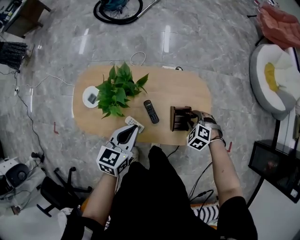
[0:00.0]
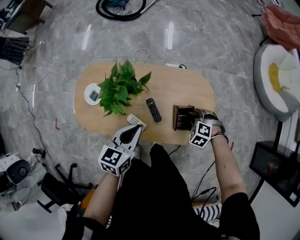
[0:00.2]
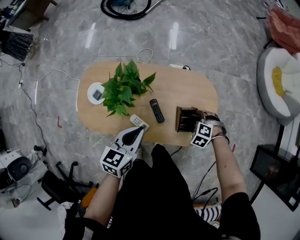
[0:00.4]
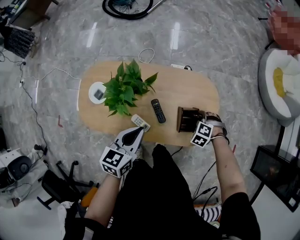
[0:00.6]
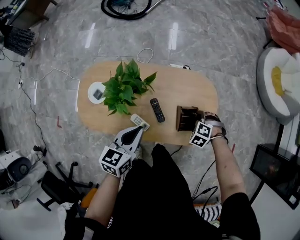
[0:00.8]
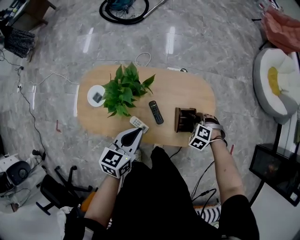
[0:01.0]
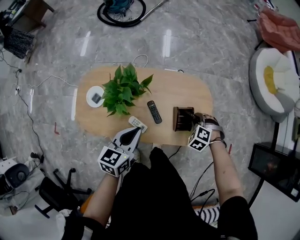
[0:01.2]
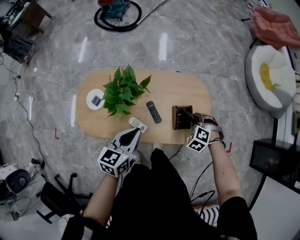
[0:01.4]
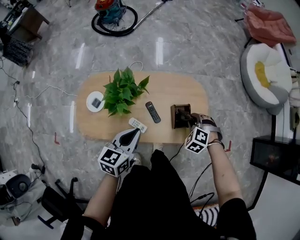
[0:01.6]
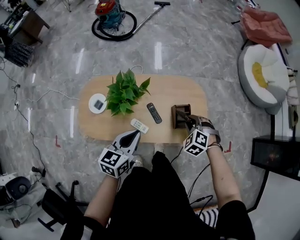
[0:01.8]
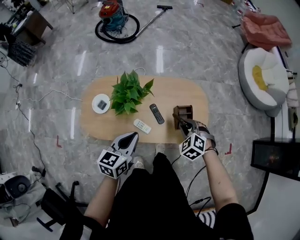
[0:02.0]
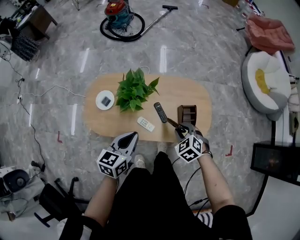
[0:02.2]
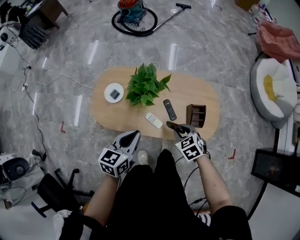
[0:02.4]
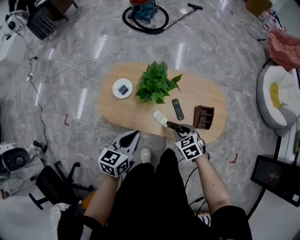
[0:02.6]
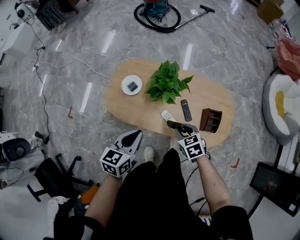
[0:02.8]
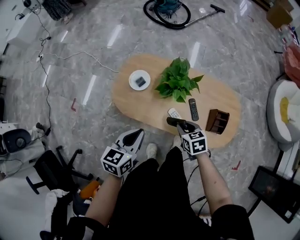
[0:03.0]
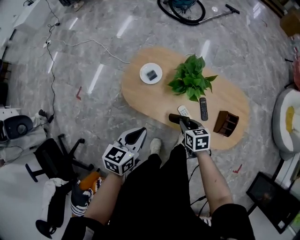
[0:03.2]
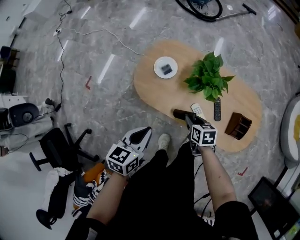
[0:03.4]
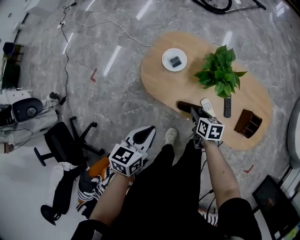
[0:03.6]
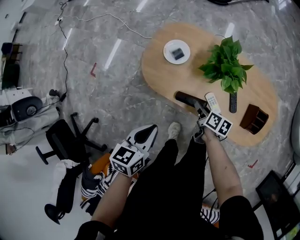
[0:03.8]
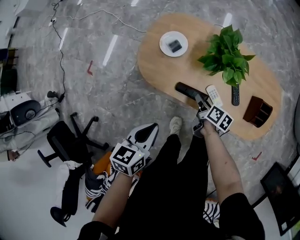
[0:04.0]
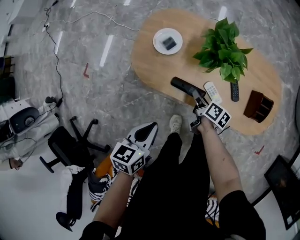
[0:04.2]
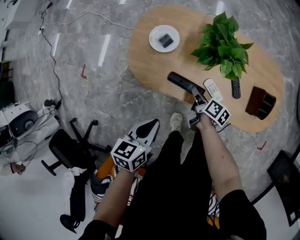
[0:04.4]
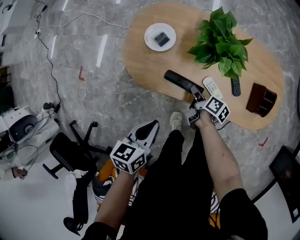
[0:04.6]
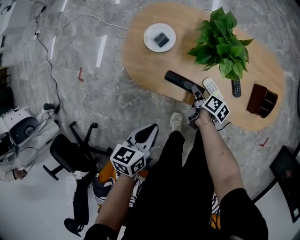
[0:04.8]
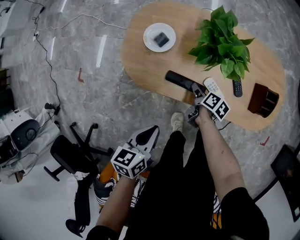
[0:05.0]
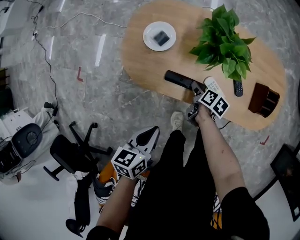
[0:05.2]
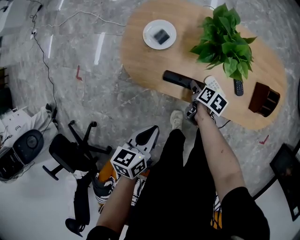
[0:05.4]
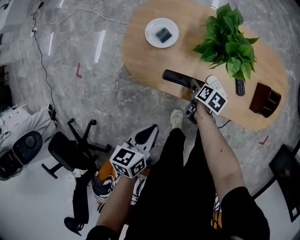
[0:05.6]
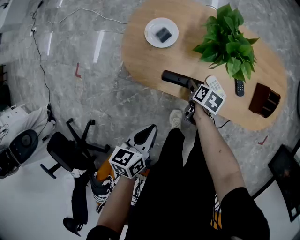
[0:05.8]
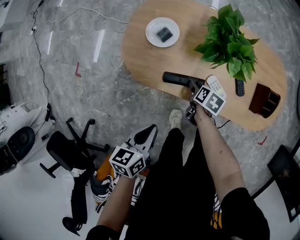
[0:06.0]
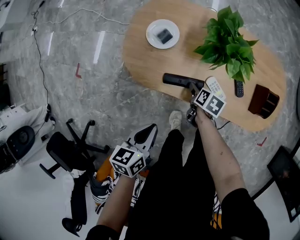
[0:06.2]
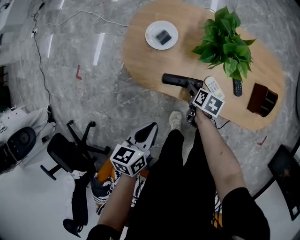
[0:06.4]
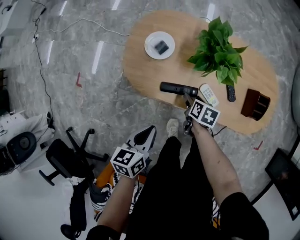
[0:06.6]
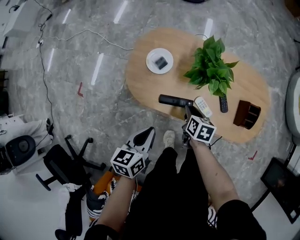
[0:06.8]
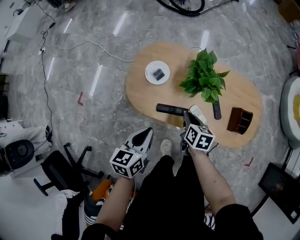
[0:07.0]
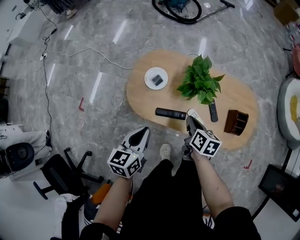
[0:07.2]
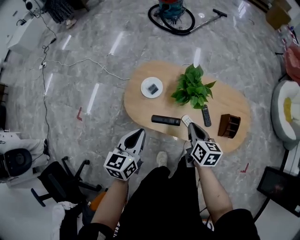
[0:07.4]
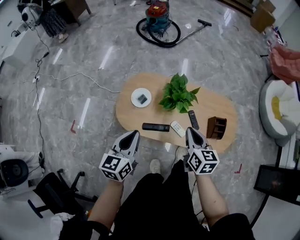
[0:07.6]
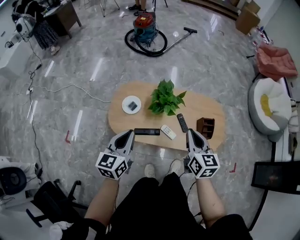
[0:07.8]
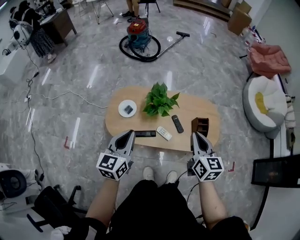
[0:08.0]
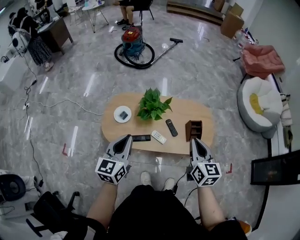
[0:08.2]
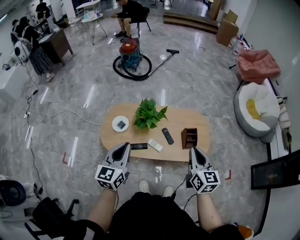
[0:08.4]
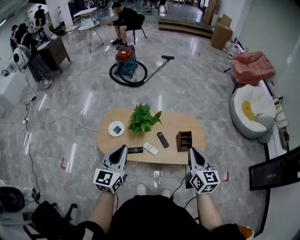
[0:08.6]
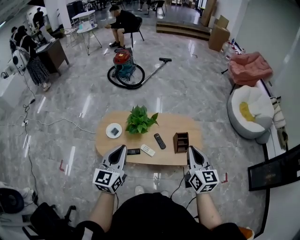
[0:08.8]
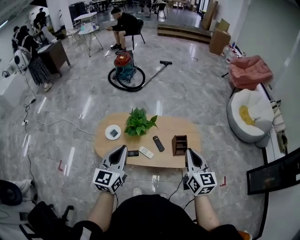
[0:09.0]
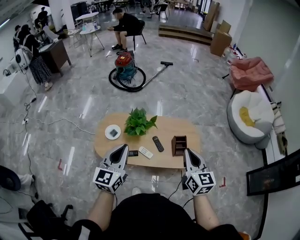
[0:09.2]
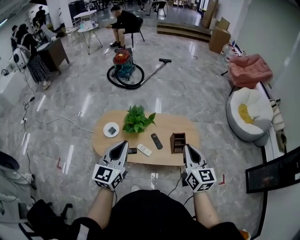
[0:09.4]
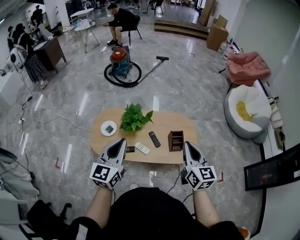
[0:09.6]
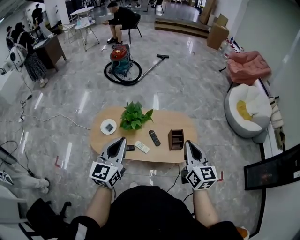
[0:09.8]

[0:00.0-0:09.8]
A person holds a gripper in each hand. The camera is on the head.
0:00.0 to 0:01.4: There are only small adjustments of the grippers.
0:01.4 to 0:02.8: The right gripper ends up about 30 cm from where it was, and rotates roughly 50 degrees. Meanwhile the left gripper moves approximately 20 cm.
0:02.8 to 0:04.2: The grippers both shift downward and to the left by some 20 cm. The right gripper twists some 70 degrees clockwise, seen from behind.
0:04.2 to 0:05.6: Both grippers travel together downward, some 5 cm. The right gripper rotates roughly 30 degrees, and opens up.
0:05.6 to 0:07.0: The right gripper goes about 20 cm upward, rotates approximately 30 degrees, and closes its fingers. The left gripper goes about 15 cm upward and forward.
0:07.0 to 0:08.4: The left gripper travels upward and to the right by about 25 cm, and rotates approximately 30 degrees; the right gripper travels upward, to the right and backward by approximately 40 cm, and tips its fingers upward by approximately 30 degrees.
0:08.4 to 0:09.8: The grippers both shift to the right and upward by about 10 cm.

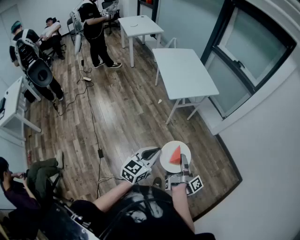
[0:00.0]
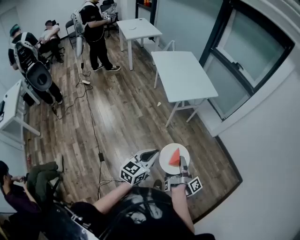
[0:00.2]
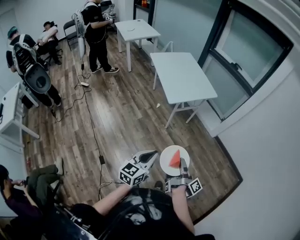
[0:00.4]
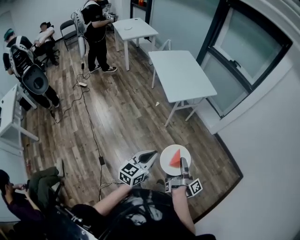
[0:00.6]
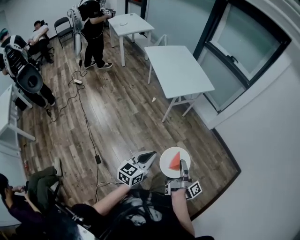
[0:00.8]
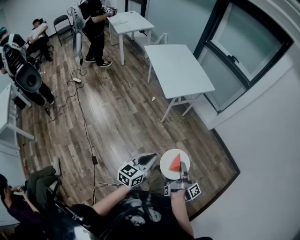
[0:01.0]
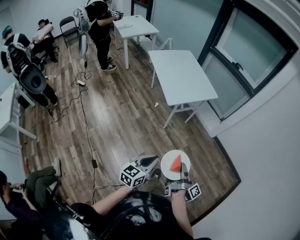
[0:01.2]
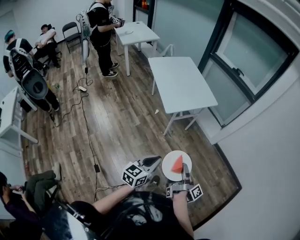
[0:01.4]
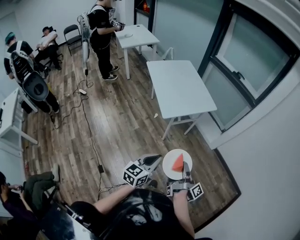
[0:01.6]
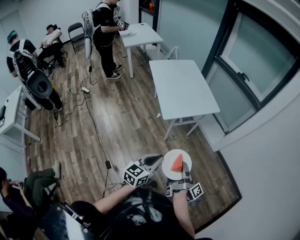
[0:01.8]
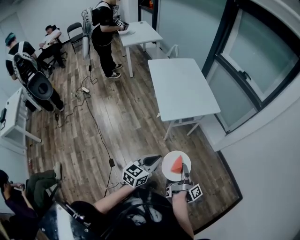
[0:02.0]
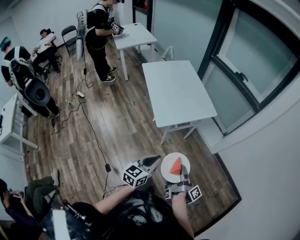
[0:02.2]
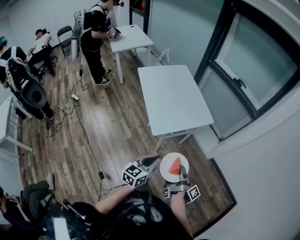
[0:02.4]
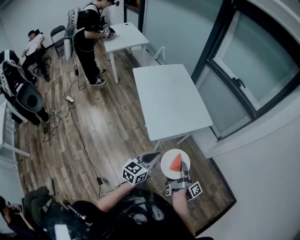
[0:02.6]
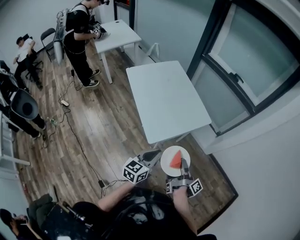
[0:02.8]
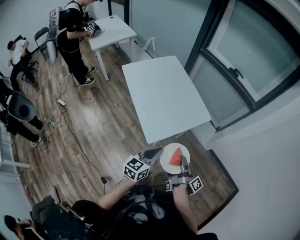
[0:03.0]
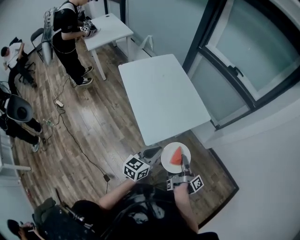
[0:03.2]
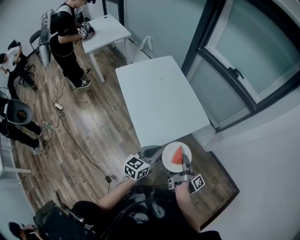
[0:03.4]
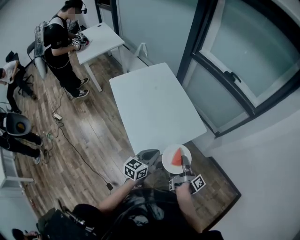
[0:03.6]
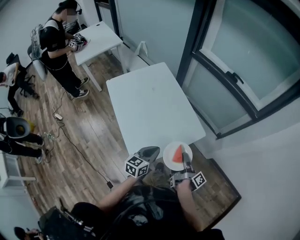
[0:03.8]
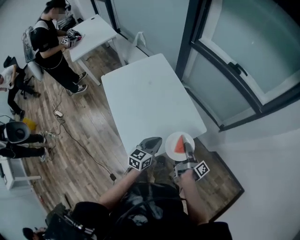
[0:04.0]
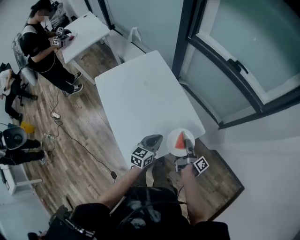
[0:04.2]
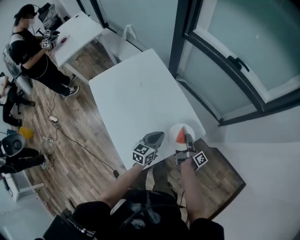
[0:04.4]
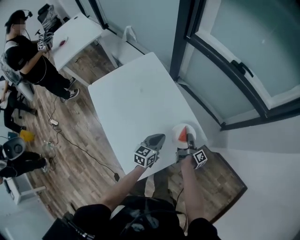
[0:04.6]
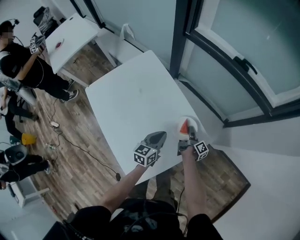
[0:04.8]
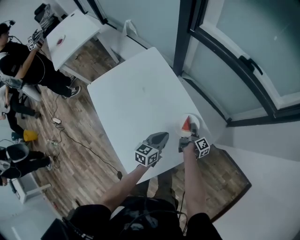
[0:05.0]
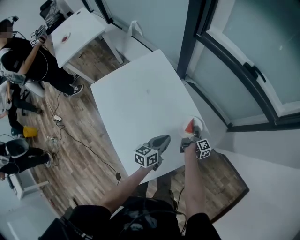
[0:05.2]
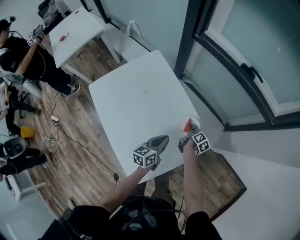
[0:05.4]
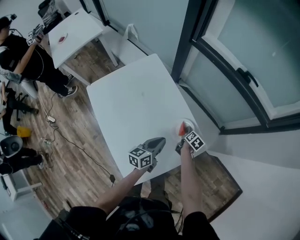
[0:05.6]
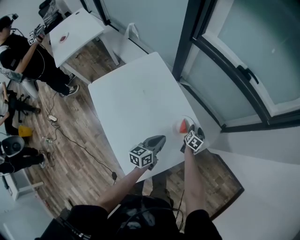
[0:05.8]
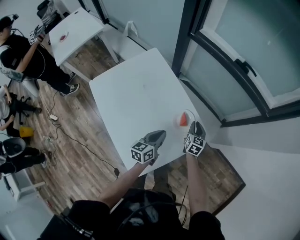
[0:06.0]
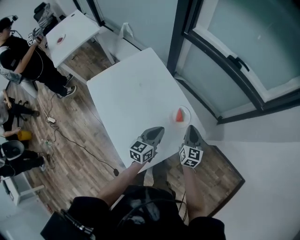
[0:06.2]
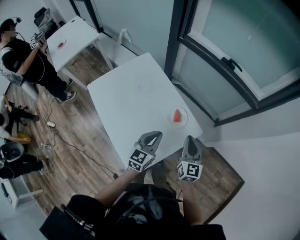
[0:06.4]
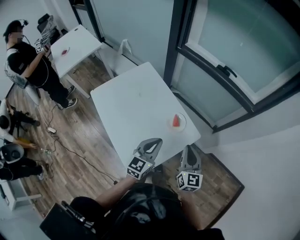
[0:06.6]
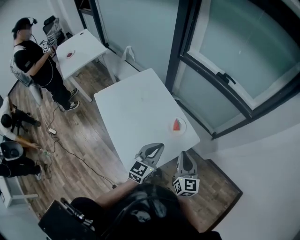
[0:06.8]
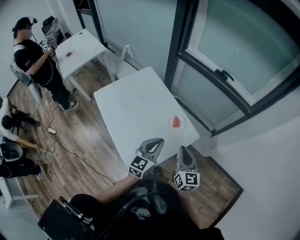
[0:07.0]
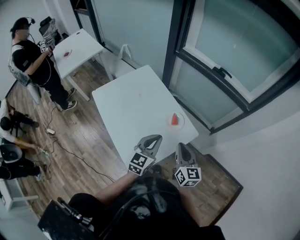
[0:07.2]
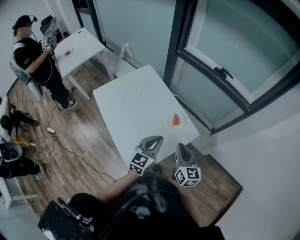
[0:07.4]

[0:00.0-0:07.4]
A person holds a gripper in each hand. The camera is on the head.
0:00.0 to 0:01.4: The left gripper moves about 10 cm.
0:01.4 to 0:03.0: The left gripper moves about 40 cm.
0:03.0 to 0:04.4: The left gripper moves approximately 40 cm.
0:06.0 to 0:07.4: The left gripper heads upward, covering approximately 15 cm, and swivels approximately 30 degrees.

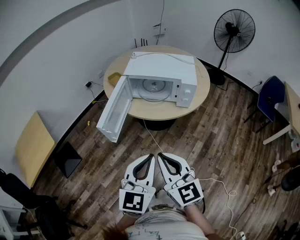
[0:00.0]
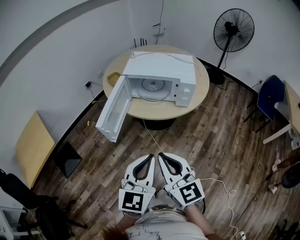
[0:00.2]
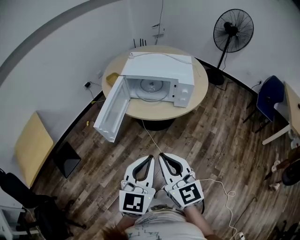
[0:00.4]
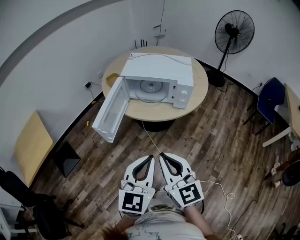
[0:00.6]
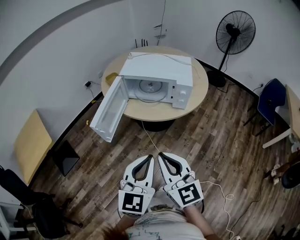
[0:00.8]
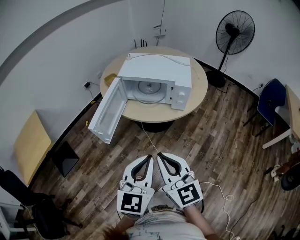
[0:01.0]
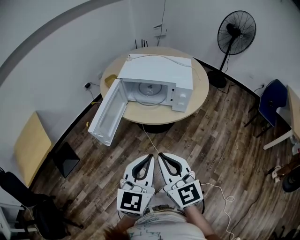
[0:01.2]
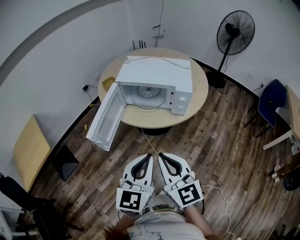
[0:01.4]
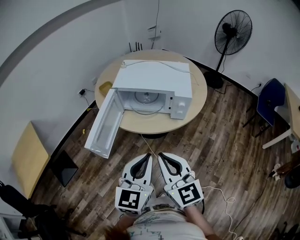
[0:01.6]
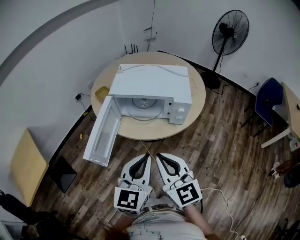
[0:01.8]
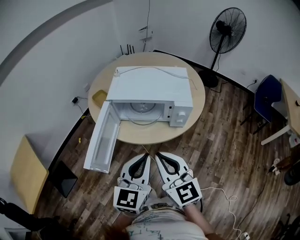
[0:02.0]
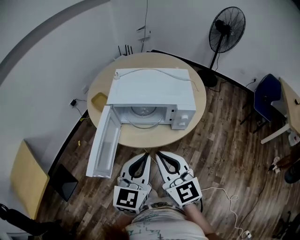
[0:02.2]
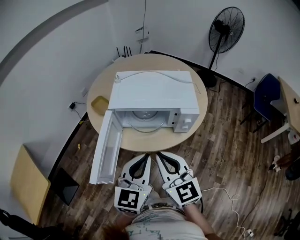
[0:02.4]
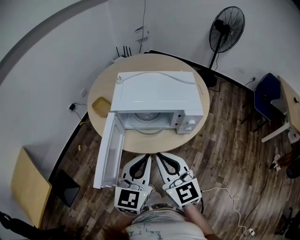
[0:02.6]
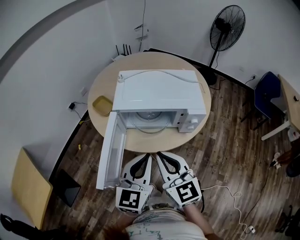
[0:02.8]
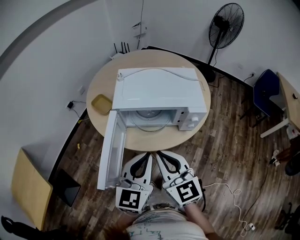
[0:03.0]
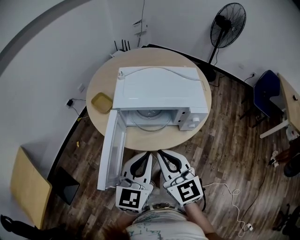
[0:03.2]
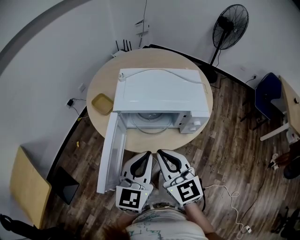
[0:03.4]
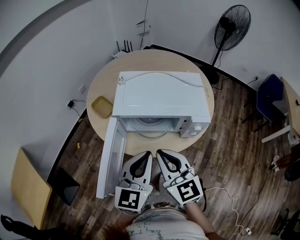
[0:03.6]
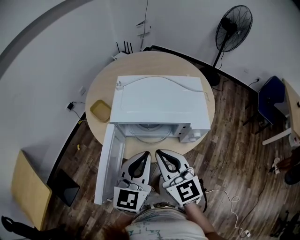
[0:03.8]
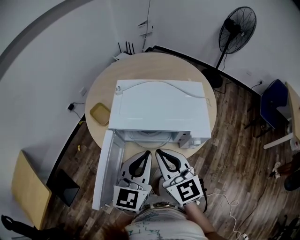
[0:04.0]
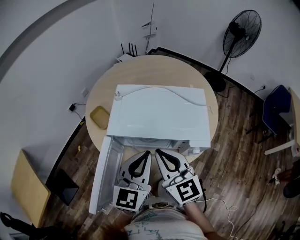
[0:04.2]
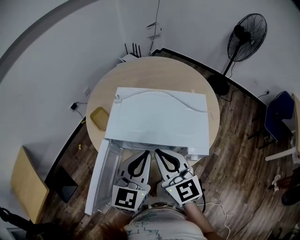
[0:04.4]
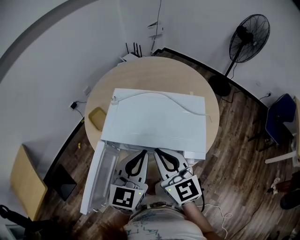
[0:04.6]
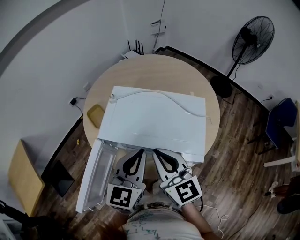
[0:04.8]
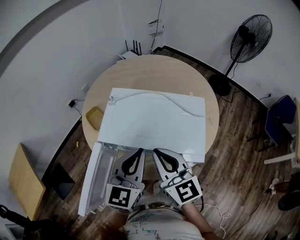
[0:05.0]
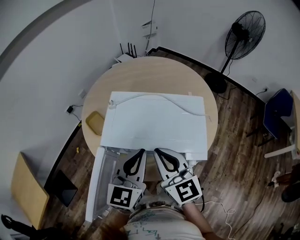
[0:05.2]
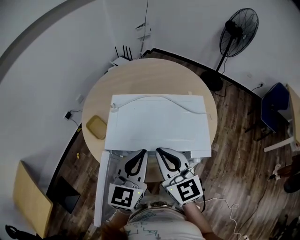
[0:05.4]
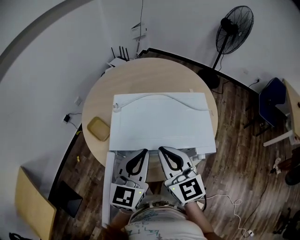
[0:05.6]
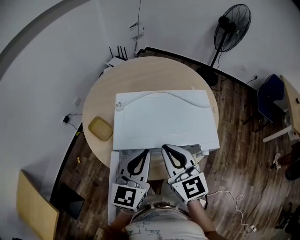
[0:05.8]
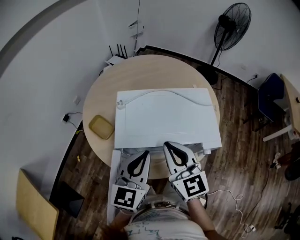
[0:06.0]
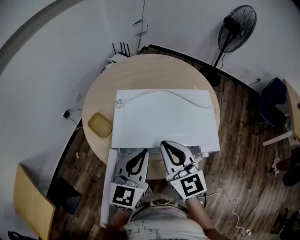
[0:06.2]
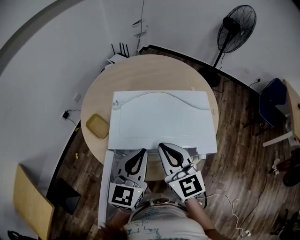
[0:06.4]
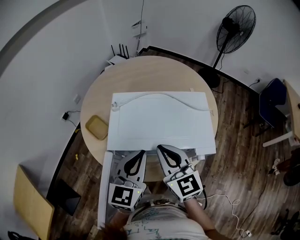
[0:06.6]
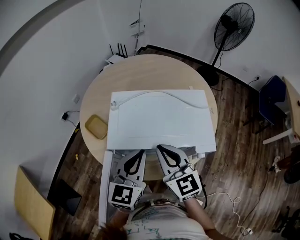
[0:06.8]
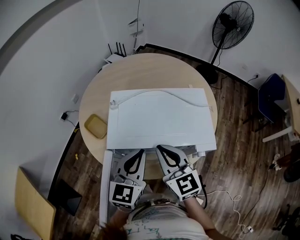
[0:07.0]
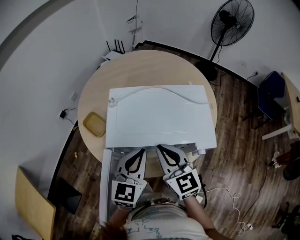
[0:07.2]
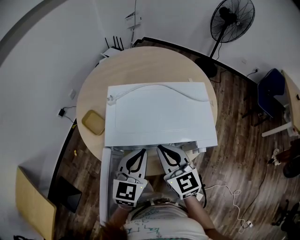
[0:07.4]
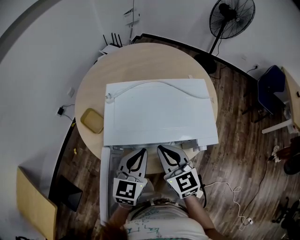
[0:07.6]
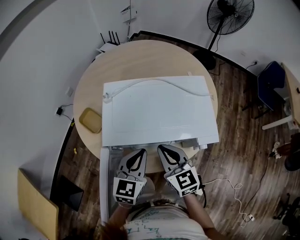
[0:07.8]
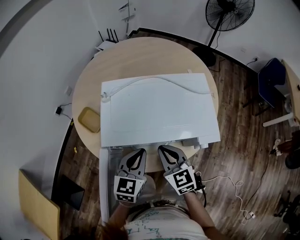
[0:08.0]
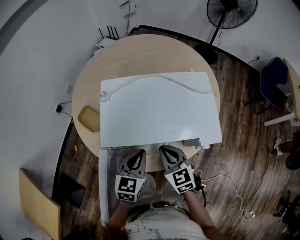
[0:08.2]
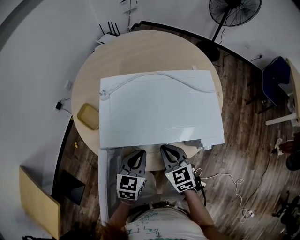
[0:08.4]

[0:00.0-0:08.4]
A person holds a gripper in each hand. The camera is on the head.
0:00.0 to 0:01.4: The right gripper goes roughly 5 cm to the right and forward. Meanwhile the left gripper travels forward by about 5 cm.
0:01.4 to 0:02.8: The right gripper shifts about 20 cm forward and to the left. The left gripper is displaced forward by roughly 20 cm.
0:02.8 to 0:04.2: Both grippers travel together forward, approximately 15 cm.
0:04.2 to 0:05.6: The grippers both shift forward by about 5 cm.
0:05.6 to 0:07.0: The grippers move only a little.
0:07.0 to 0:08.4: Both grippers move downward, approximately 15 cm.
